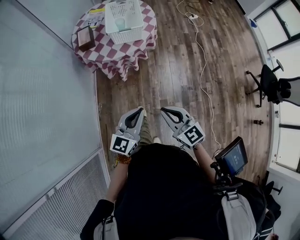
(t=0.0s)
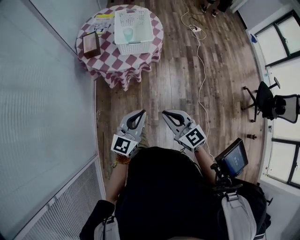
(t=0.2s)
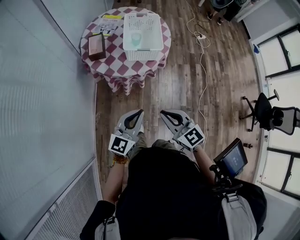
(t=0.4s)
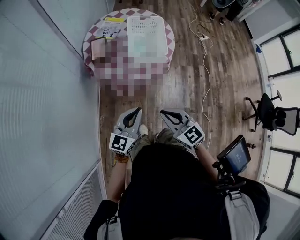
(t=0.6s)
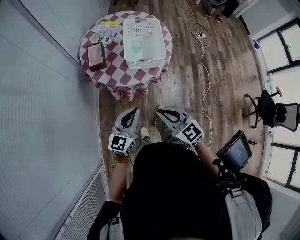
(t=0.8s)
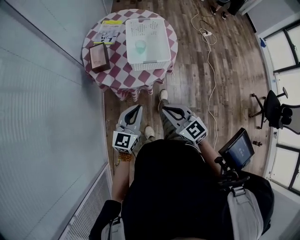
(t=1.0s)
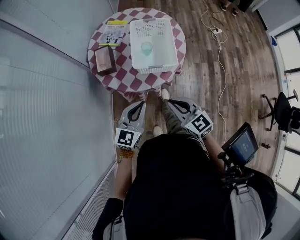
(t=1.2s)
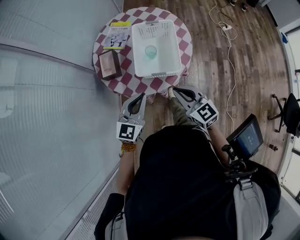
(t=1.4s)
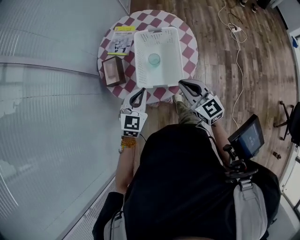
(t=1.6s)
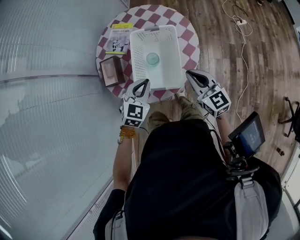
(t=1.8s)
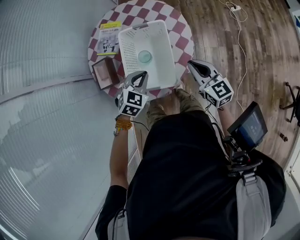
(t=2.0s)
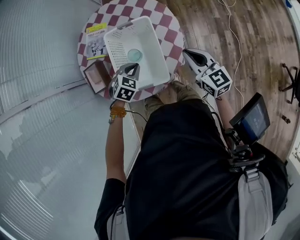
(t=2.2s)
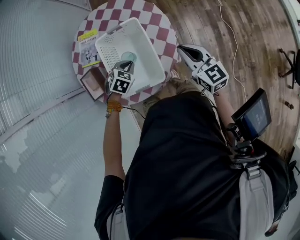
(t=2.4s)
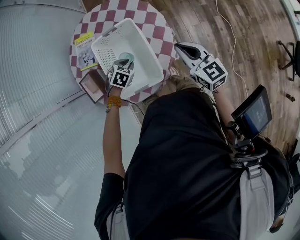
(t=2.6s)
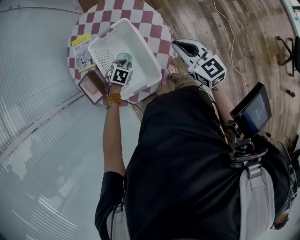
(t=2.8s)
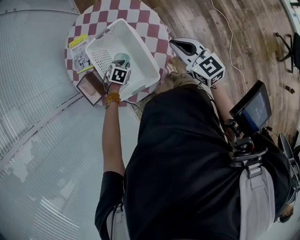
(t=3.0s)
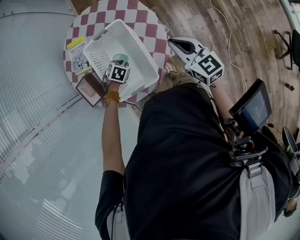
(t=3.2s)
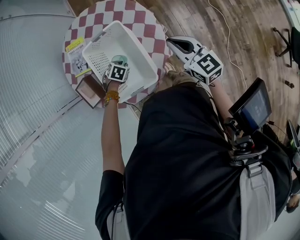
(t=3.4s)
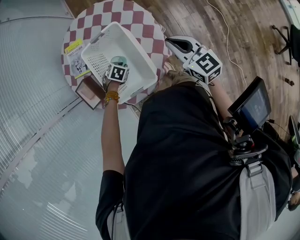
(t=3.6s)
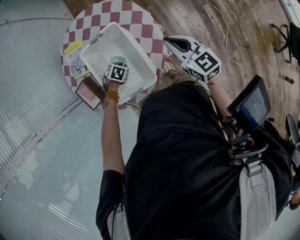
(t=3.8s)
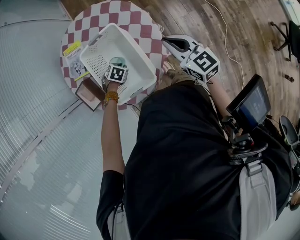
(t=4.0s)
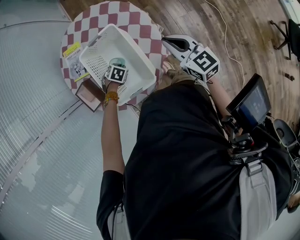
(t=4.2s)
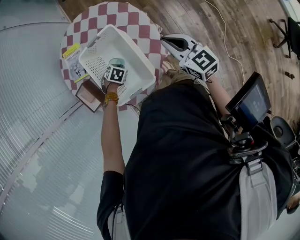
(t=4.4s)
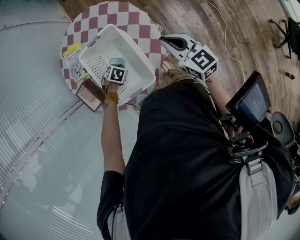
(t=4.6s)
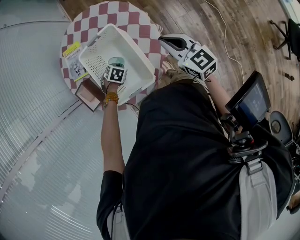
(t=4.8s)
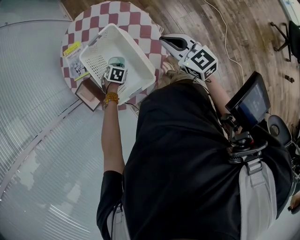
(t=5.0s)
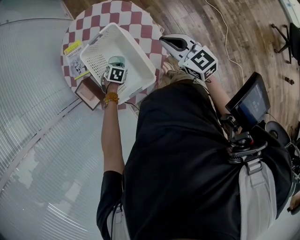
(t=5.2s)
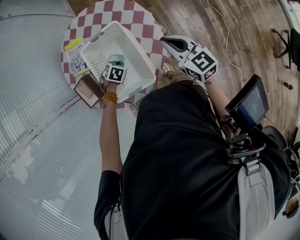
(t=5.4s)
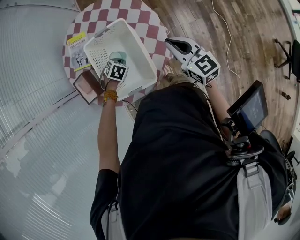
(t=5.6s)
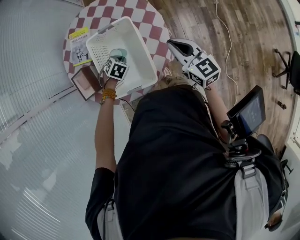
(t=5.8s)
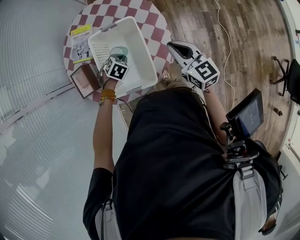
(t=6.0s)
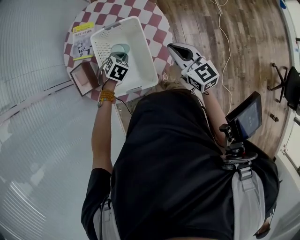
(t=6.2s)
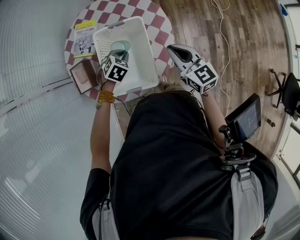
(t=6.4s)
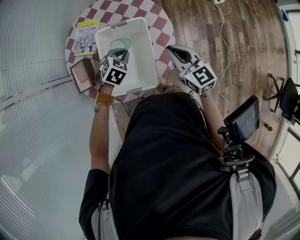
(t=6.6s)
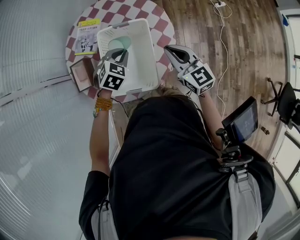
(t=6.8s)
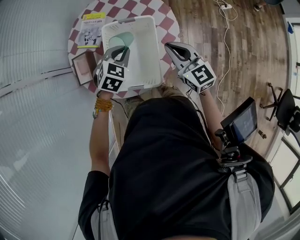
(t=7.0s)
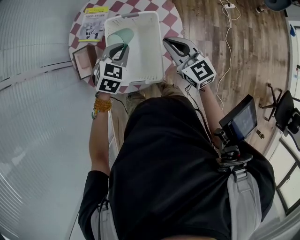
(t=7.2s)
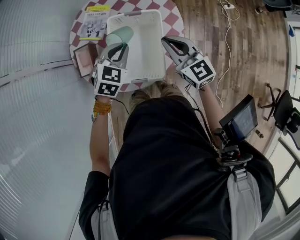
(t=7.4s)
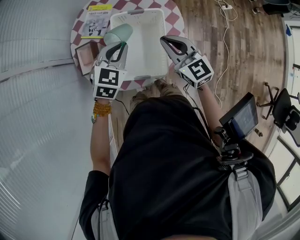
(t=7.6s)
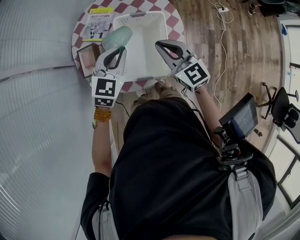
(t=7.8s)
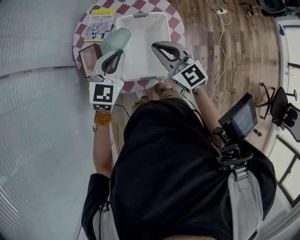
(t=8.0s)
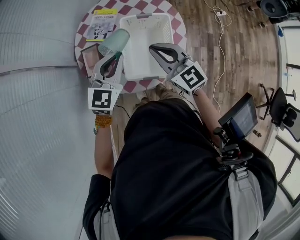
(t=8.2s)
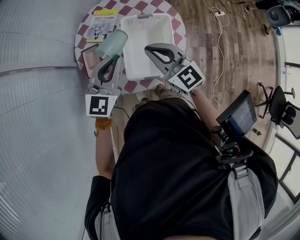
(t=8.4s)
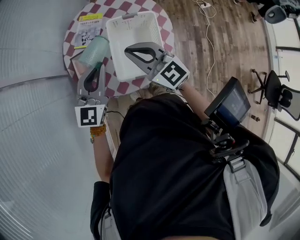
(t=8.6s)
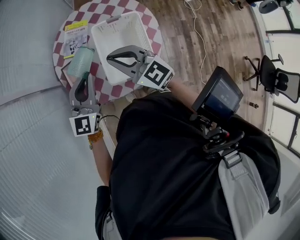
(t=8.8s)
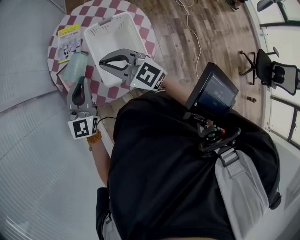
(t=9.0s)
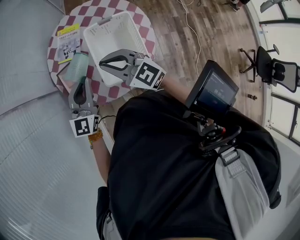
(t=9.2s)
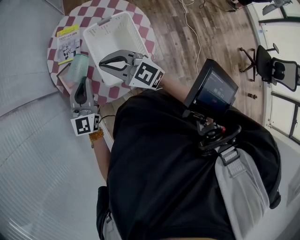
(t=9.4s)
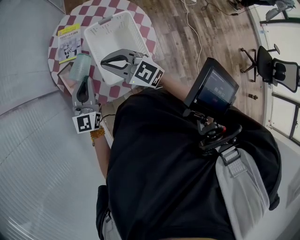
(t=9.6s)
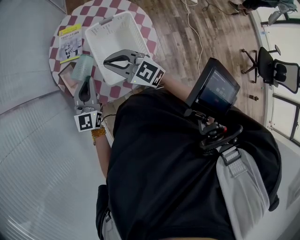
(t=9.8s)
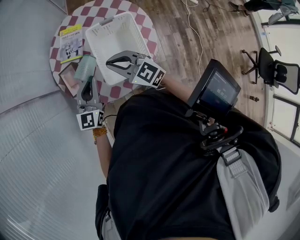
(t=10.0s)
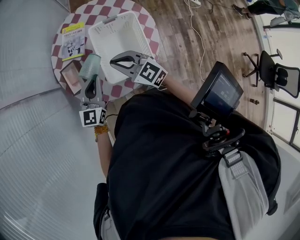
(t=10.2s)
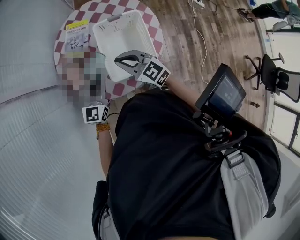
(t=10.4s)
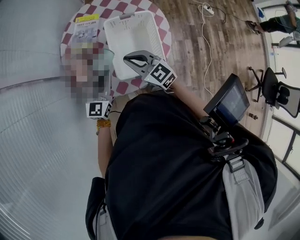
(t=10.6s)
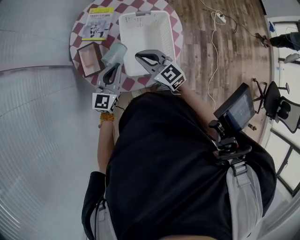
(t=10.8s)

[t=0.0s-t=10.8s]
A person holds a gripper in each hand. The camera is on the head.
t=0.0s to t=1.6s: The pair of grippers is taken forward, about 50 cm. The left gripper changes its angle by roughly 30 degrees.
t=1.6s to t=3.0s: The left gripper is displaced downward by about 25 cm, and angles its fingers downward, by approximately 50 degrees. Meanwhile the right gripper changes place by some 20 cm, and swivels approximately 20 degrees.
t=3.0s to t=4.6s: The grippers stay close to where they were, moving slightly.
t=4.6s to t=6.2s: The left gripper heads upward, covering roughly 10 cm.
t=6.2s to t=7.8s: The left gripper travels upward by approximately 25 cm, and tilts its fingers approximately 40 degrees upward, while the right gripper shifts about 15 cm to the left and upward.
t=7.8s to t=9.2s: The two grippers go about 10 cm to the left. The left gripper rotates about 30 degrees.
t=9.2s to t=10.8s: Both grippers move downward, approximately 10 cm.

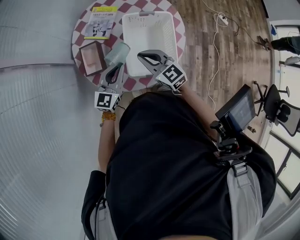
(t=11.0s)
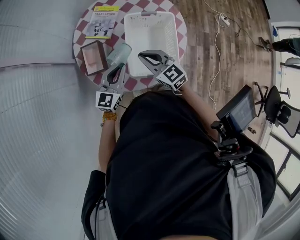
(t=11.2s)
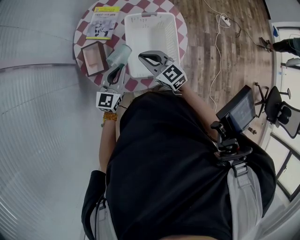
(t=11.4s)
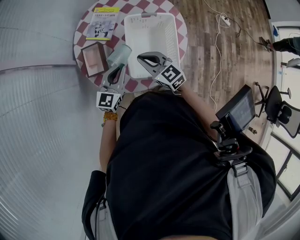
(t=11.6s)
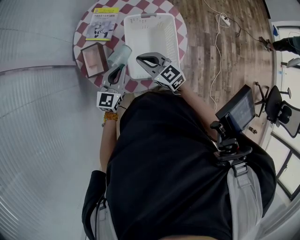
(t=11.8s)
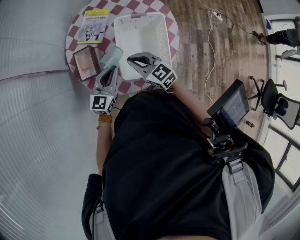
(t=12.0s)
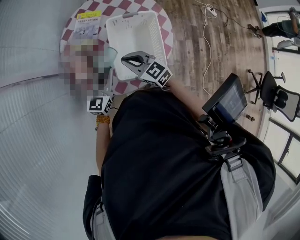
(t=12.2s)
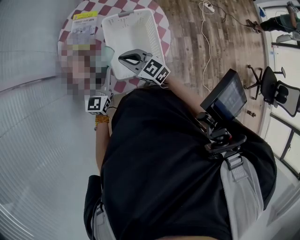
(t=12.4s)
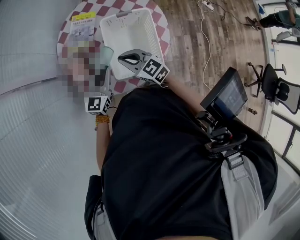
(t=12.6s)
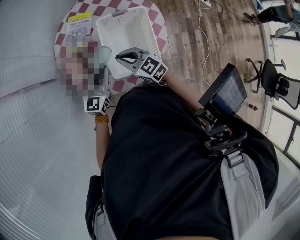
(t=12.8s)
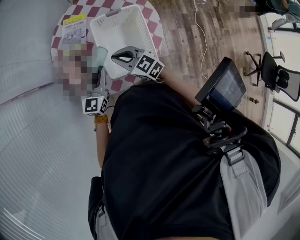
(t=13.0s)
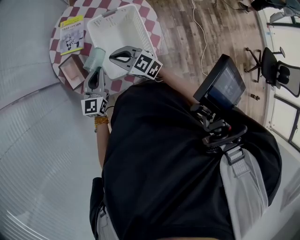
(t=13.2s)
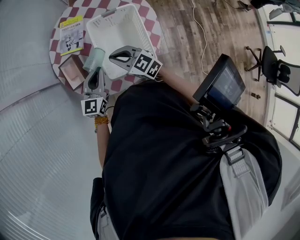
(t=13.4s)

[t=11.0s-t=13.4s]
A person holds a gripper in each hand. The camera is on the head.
t=11.0s to t=12.2s: The grippers stay close to where they were, moving slightly.
t=12.2s to t=13.4s: Both grippers stay about where they are.

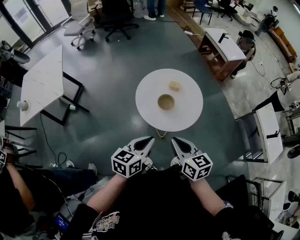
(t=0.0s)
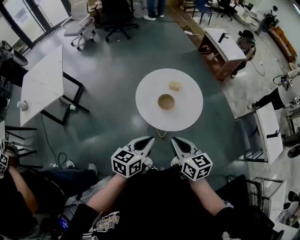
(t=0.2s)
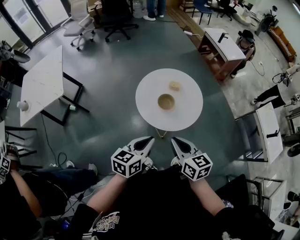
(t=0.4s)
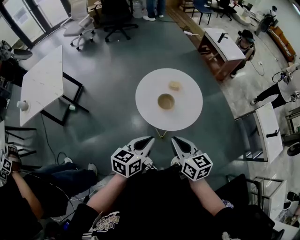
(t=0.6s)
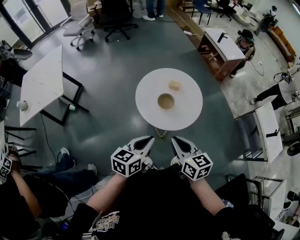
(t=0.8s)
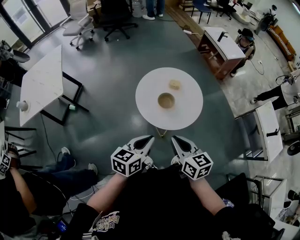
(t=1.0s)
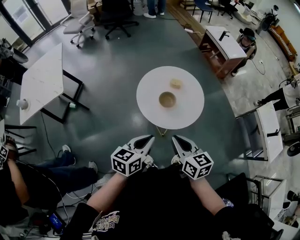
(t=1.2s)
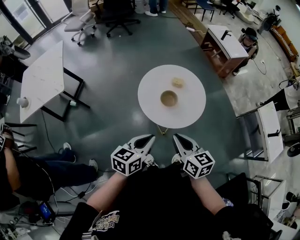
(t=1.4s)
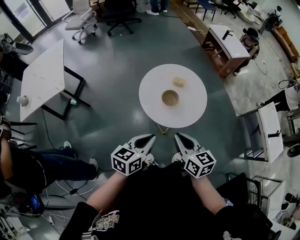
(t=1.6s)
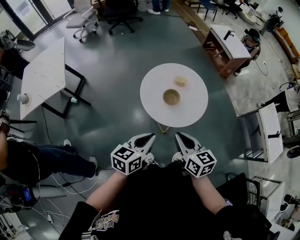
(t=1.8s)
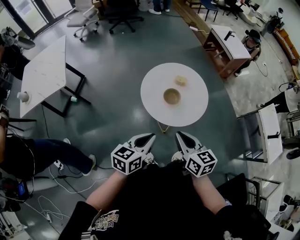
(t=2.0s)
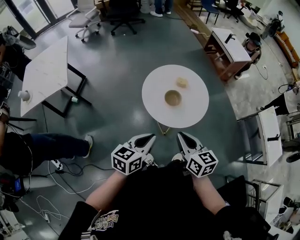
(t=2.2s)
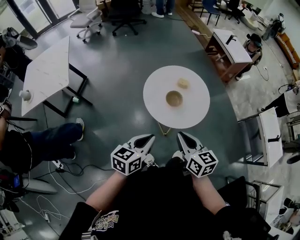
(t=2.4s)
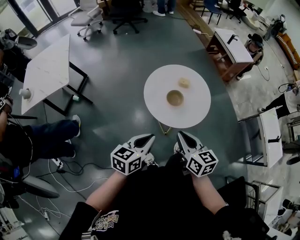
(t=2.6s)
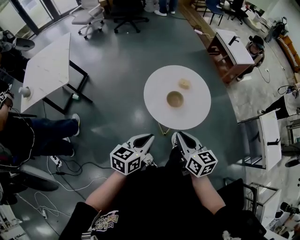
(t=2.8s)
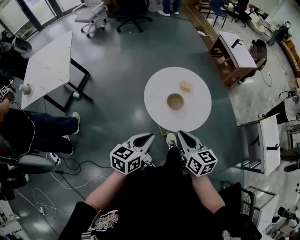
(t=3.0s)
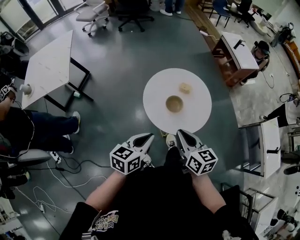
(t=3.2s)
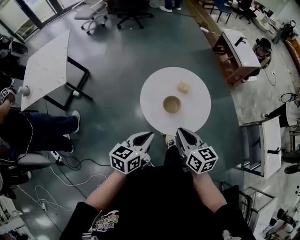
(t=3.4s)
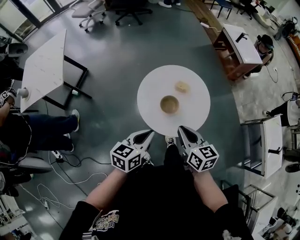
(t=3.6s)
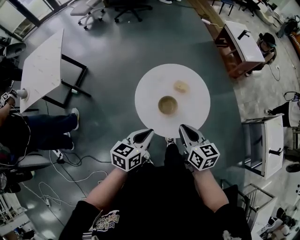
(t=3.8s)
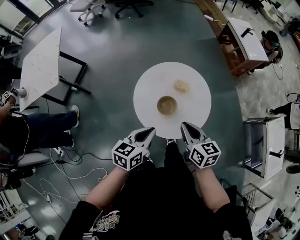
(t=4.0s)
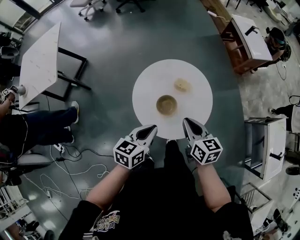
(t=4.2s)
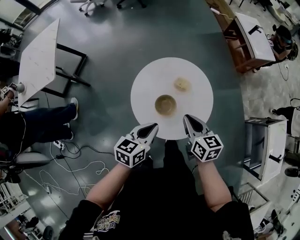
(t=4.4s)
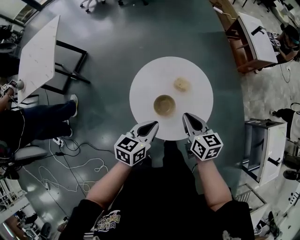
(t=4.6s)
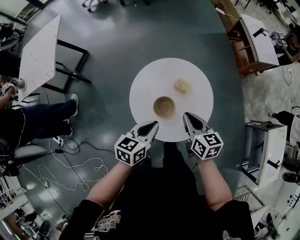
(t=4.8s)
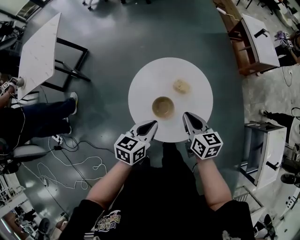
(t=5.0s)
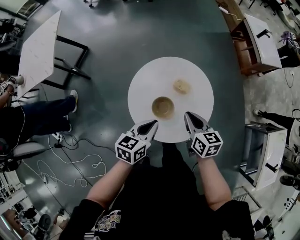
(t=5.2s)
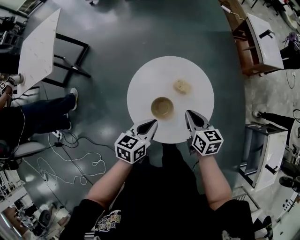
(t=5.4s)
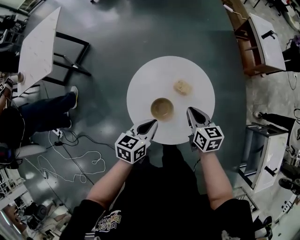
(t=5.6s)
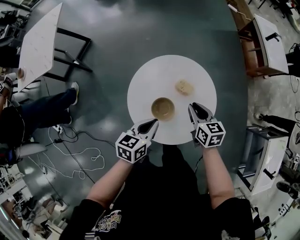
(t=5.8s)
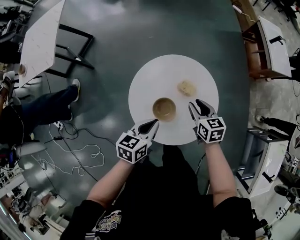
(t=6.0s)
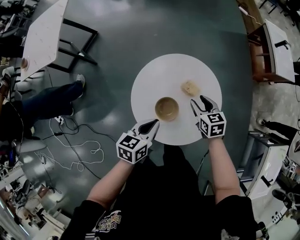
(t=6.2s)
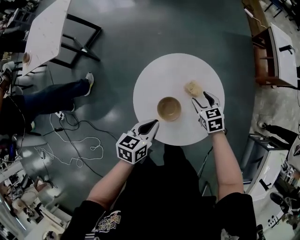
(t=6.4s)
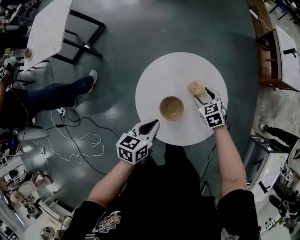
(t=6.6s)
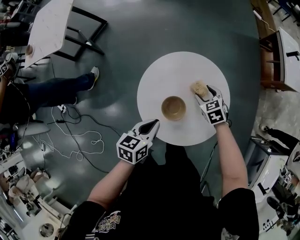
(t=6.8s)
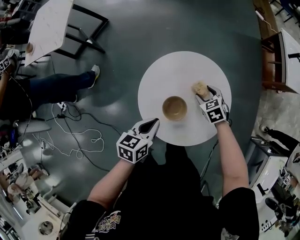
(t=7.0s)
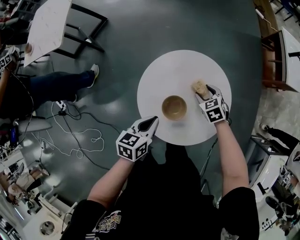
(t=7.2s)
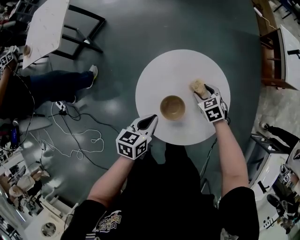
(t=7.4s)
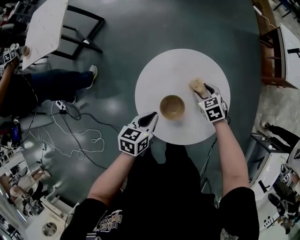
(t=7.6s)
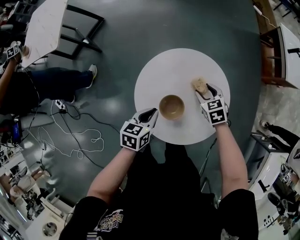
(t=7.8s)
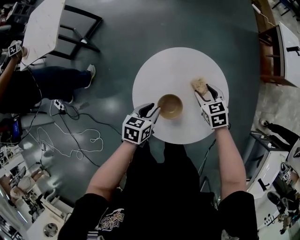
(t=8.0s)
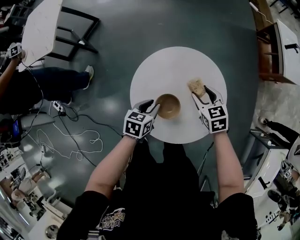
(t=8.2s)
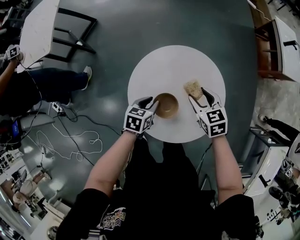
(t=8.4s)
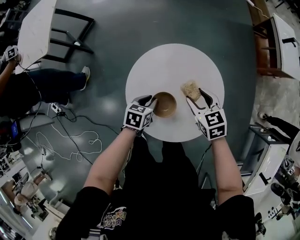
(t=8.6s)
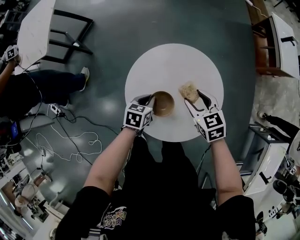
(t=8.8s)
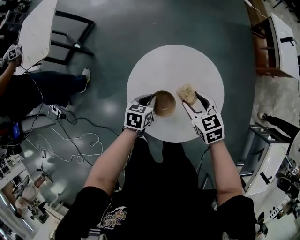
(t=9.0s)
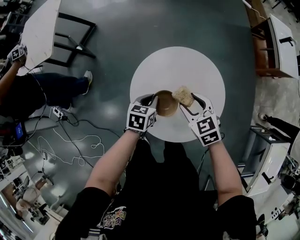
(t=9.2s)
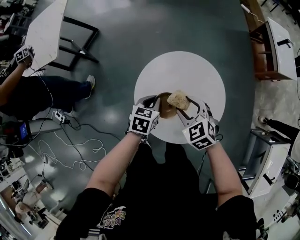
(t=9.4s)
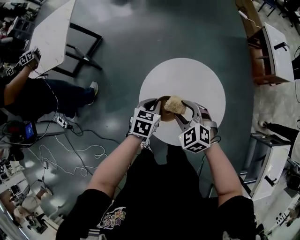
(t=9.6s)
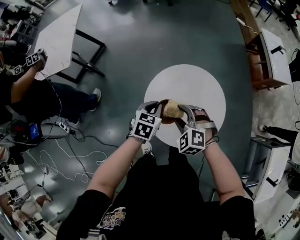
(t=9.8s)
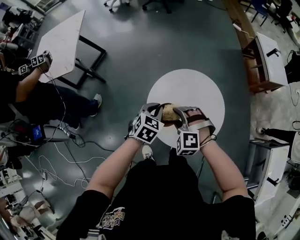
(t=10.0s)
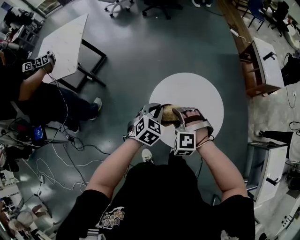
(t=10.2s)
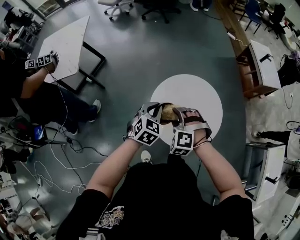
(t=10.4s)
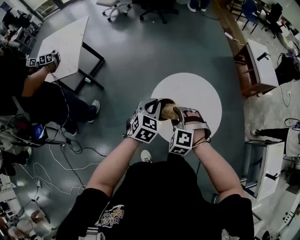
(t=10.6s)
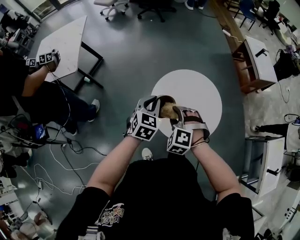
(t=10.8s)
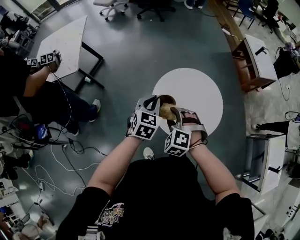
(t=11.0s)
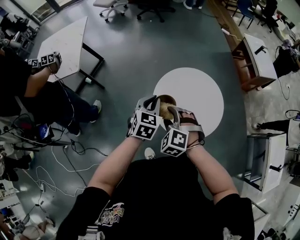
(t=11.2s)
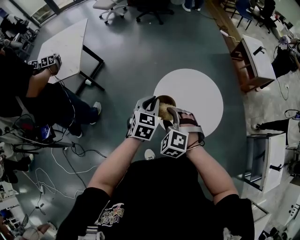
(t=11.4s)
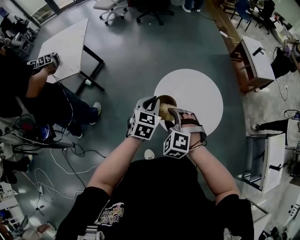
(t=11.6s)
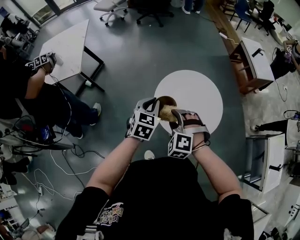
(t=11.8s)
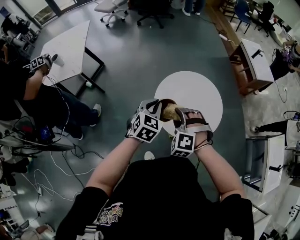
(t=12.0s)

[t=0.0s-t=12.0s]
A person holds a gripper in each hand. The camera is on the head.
t=0.0s to t=3.0s: The grippers make only small movements.
t=3.0s to t=4.4s: The grippers both shift forward, to the right and downward by approximately 20 cm.
t=4.4s to t=6.0s: The left gripper is displaced downward by roughly 5 cm. Meanwhile the right gripper goes roughly 15 cm forward and downward, and opens its fingers.
t=6.0s to t=7.6s: The left gripper is displaced downward by approximately 5 cm, while the right gripper shifts some 10 cm downward and forward, turns by roughly 30 degrees, and opens its fingers.
t=7.6s to t=9.0s: The left gripper heads downward and forward, covering about 10 cm, while the right gripper is displaced upward and backward by some 10 cm.
t=9.0s to t=10.4s: The left gripper moves upward, approximately 20 cm, and turns by about 40 degrees. The right gripper heads to the left and upward, covering about 20 cm, and rotates around the line of its fingers by some 60 degrees, counterclockwise from behind.
t=10.4s to t=12.0s: The left gripper changes place by roughly 5 cm. The right gripper is displaced backward by roughly 5 cm.
